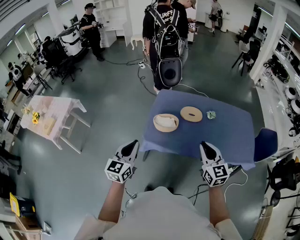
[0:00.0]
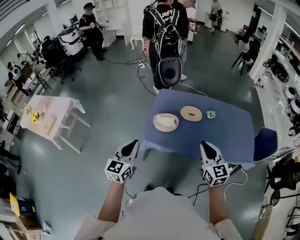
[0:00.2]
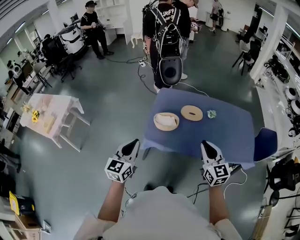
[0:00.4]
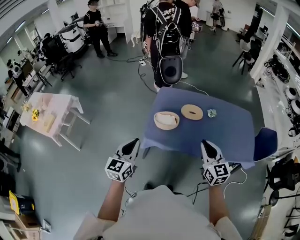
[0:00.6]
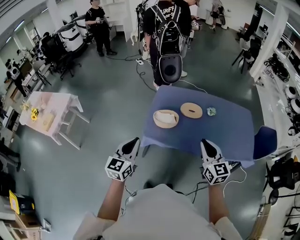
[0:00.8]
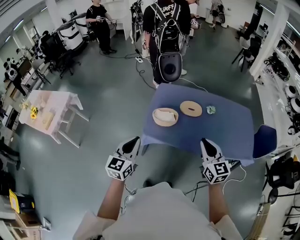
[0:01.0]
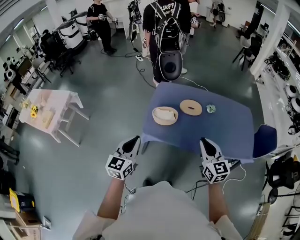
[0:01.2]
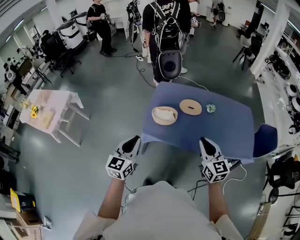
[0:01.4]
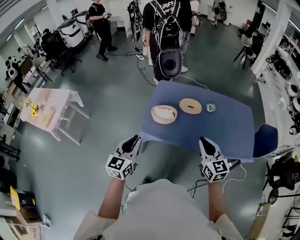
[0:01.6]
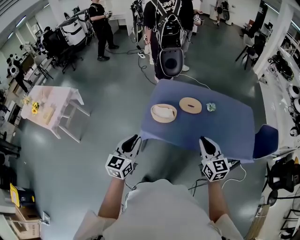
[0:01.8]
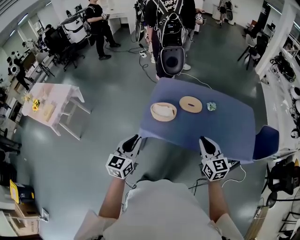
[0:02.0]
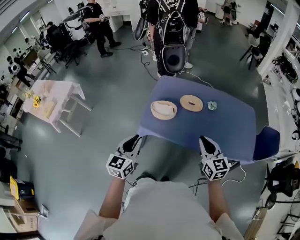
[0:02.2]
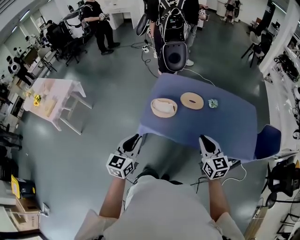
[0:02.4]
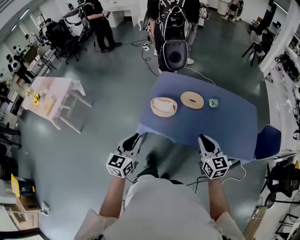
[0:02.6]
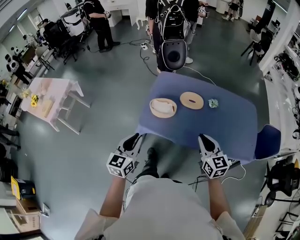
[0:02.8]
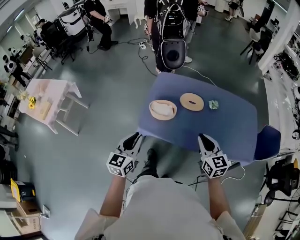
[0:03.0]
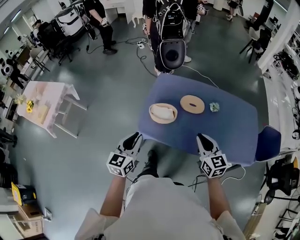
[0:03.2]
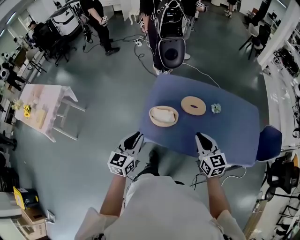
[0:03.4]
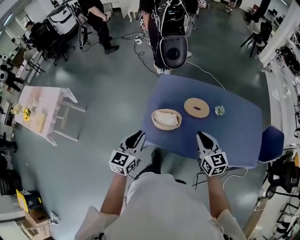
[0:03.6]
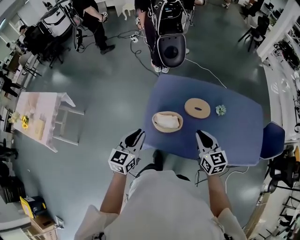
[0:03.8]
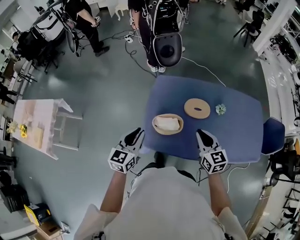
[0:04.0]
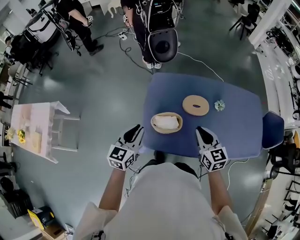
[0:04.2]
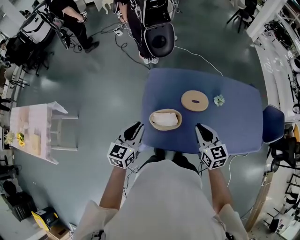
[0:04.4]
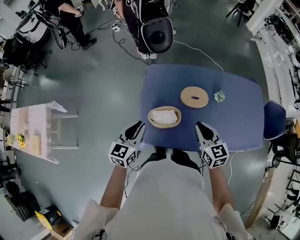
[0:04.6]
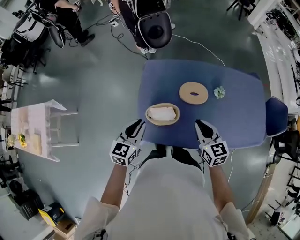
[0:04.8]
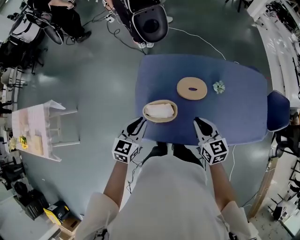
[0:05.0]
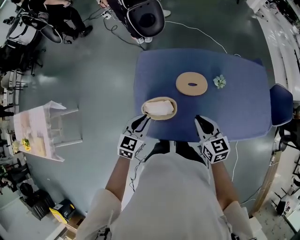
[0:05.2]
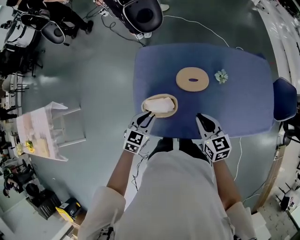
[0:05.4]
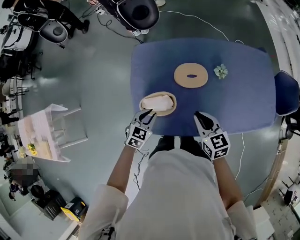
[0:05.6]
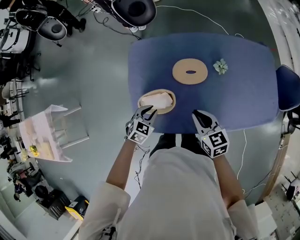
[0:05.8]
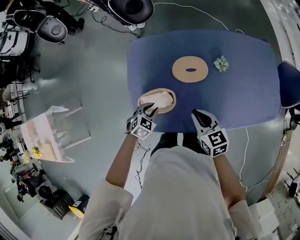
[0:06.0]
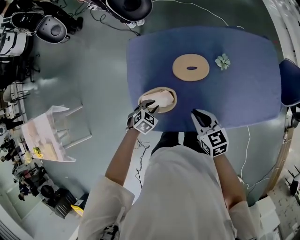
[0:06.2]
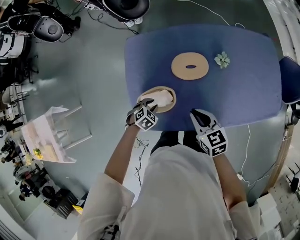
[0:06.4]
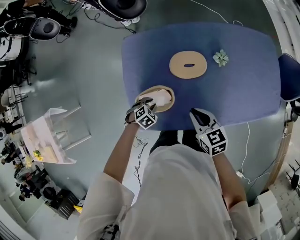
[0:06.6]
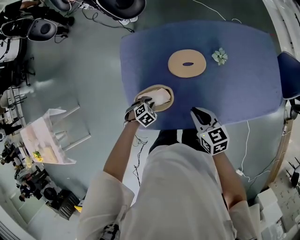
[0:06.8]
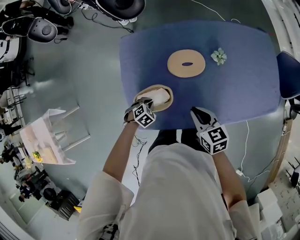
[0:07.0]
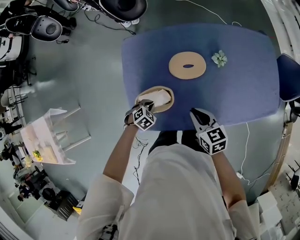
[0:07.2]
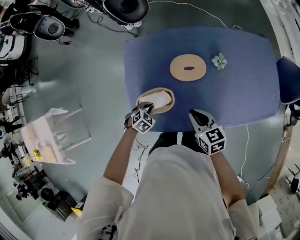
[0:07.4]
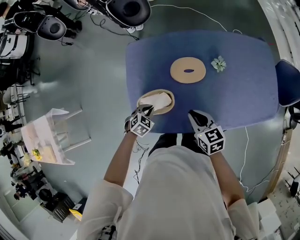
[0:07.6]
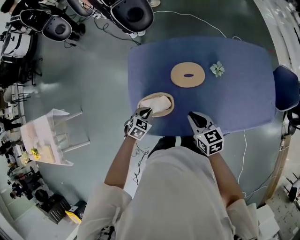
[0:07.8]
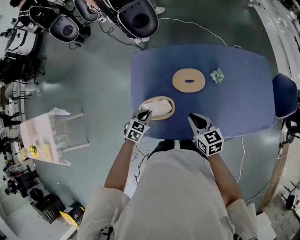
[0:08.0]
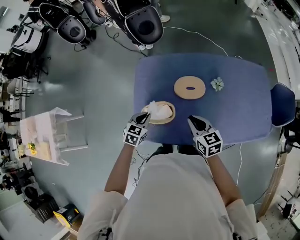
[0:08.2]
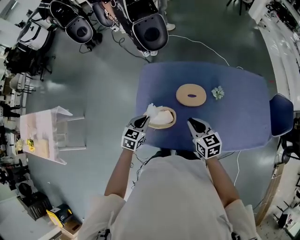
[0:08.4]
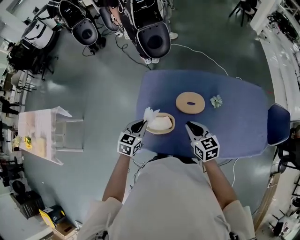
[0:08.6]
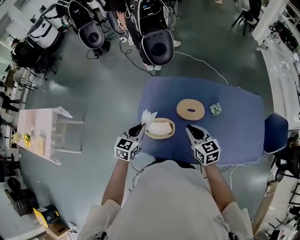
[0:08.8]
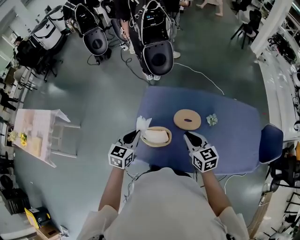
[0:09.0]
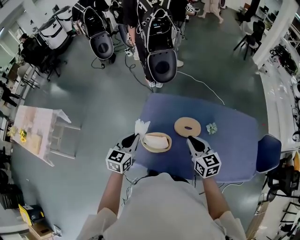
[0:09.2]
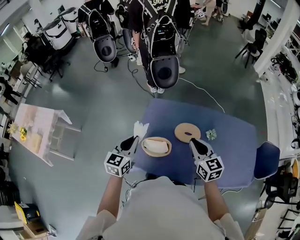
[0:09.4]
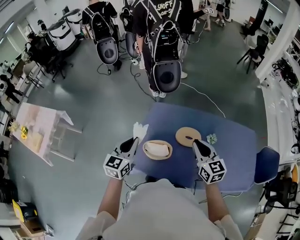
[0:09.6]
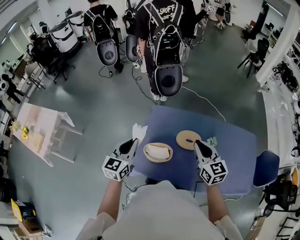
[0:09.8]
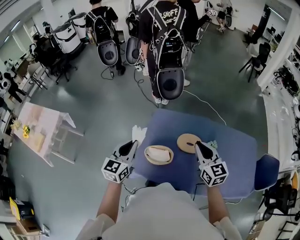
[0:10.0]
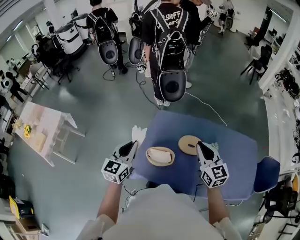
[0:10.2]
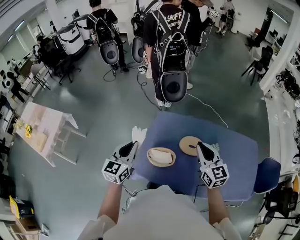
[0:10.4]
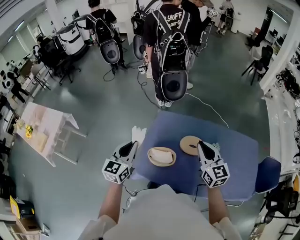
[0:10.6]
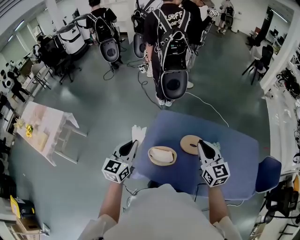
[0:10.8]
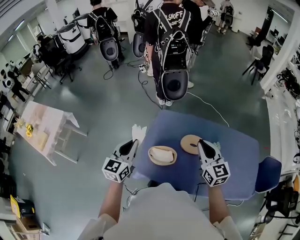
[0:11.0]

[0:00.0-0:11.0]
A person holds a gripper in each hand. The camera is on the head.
0:00.0 to 0:01.6: The grippers make only small movements.
0:01.6 to 0:03.2: Both grippers travel together forward and downward, roughly 10 cm.
0:03.2 to 0:04.8: Both grippers travel together forward, some 20 cm. The left gripper swivels roughly 20 degrees.
0:04.8 to 0:06.2: The left gripper is displaced downward by some 25 cm, and tilts its fingers roughly 40 degrees downward, while the right gripper moves downward, approximately 10 cm.
0:06.2 to 0:07.8: The left gripper closes its fingers.
0:07.8 to 0:09.4: The left gripper shifts roughly 30 cm upward, and points its fingers roughly 40 degrees further upward; the right gripper heads upward, covering about 20 cm, and rotates some 20 degrees.
0:09.4 to 0:11.0: Both grippers move upward, approximately 5 cm.

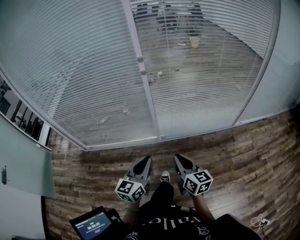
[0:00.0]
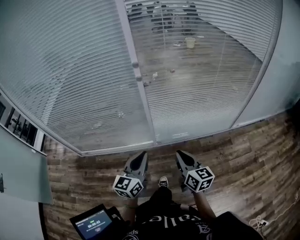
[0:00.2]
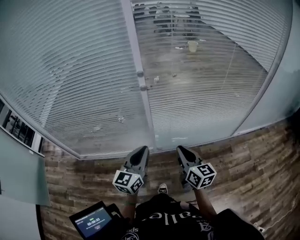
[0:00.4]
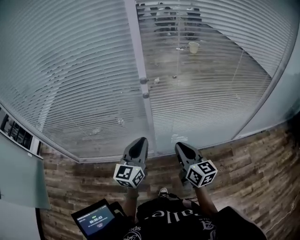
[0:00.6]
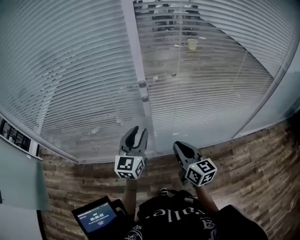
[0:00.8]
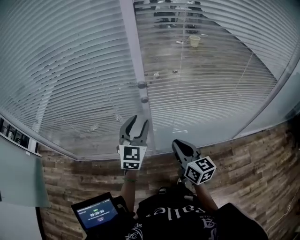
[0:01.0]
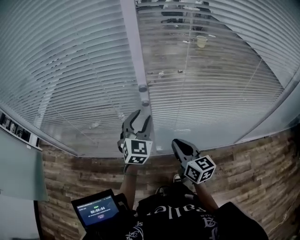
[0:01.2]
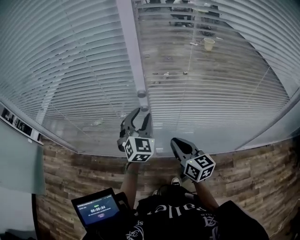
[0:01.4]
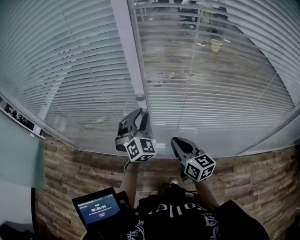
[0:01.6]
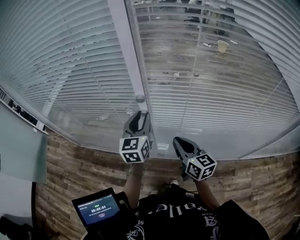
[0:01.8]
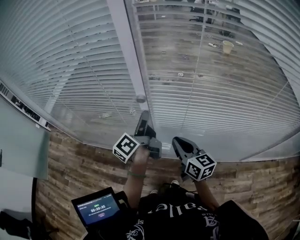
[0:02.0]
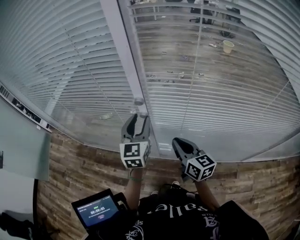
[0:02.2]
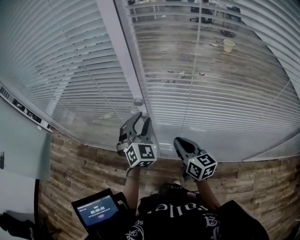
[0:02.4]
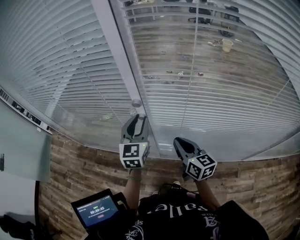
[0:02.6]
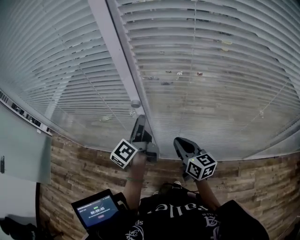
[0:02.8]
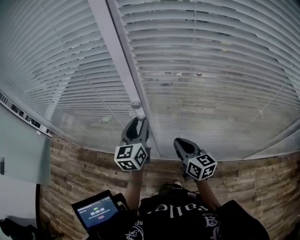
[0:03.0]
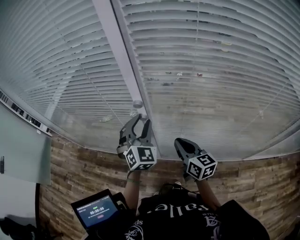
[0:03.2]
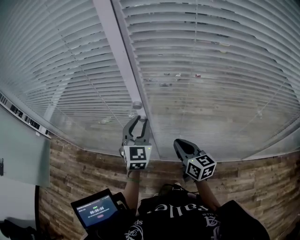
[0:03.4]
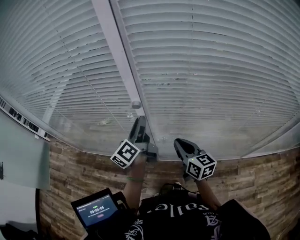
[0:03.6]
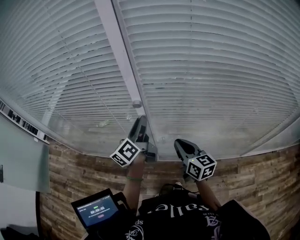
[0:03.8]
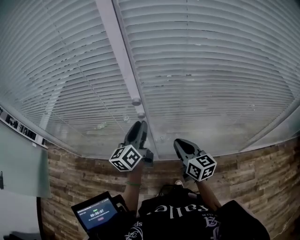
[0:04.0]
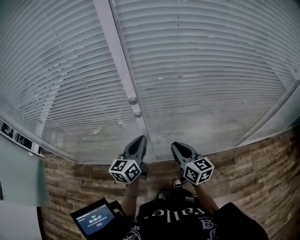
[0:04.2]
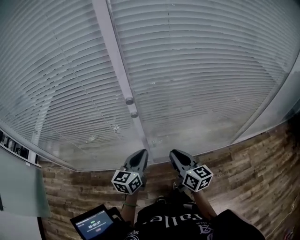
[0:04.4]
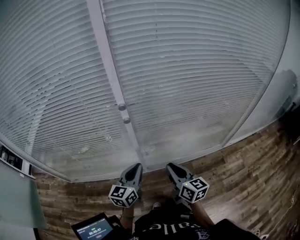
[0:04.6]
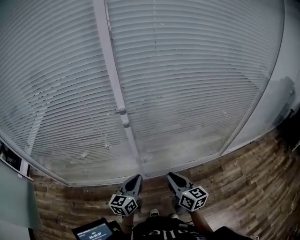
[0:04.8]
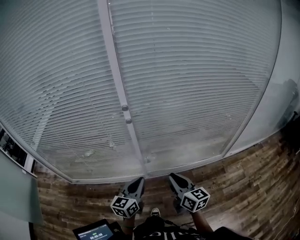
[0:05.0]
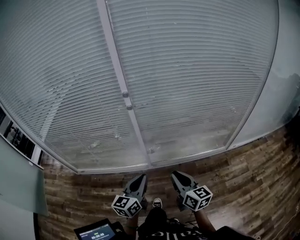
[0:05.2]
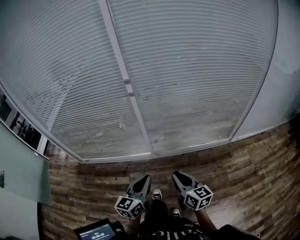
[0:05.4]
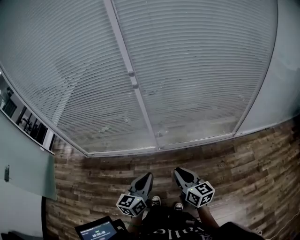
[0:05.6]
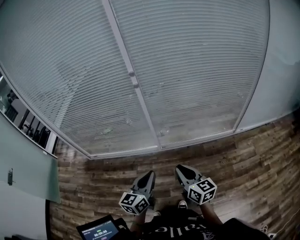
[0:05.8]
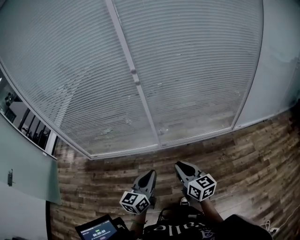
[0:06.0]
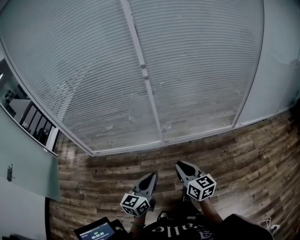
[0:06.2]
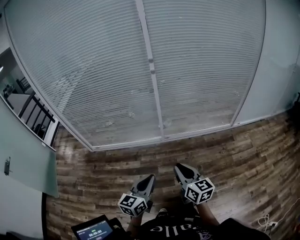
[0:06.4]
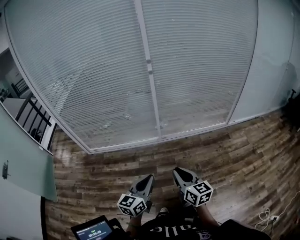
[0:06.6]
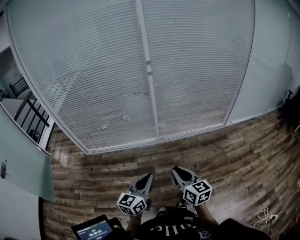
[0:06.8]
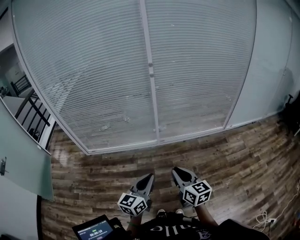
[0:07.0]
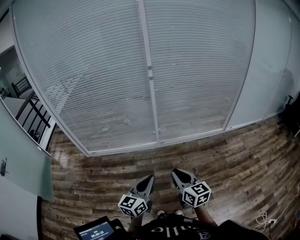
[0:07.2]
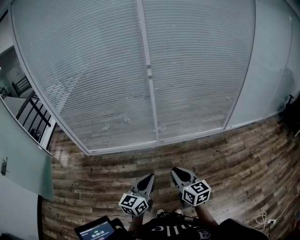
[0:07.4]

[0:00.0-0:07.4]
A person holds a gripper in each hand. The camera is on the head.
0:00.0 to 0:01.4: Both grippers move forward, approximately 40 cm. The left gripper rotates around the line of its fingers by some 50 degrees, clockwise from behind, and opens up.
0:01.4 to 0:03.0: The right gripper moves forward and to the right, some 10 cm; the left gripper rotates around the line of its fingers by some 50 degrees, counterclockwise from behind.
0:03.0 to 0:04.4: The right gripper moves backward, some 10 cm, while the left gripper travels backward and downward by about 15 cm, swivels approximately 30 degrees, and closes.
0:04.4 to 0:06.0: The pair of grippers is taken backward, some 40 cm.
0:06.0 to 0:07.4: The two grippers go roughly 25 cm backward and to the left.

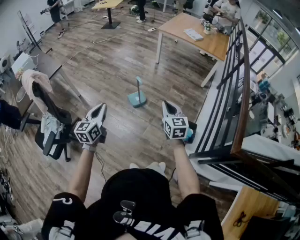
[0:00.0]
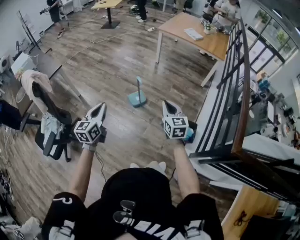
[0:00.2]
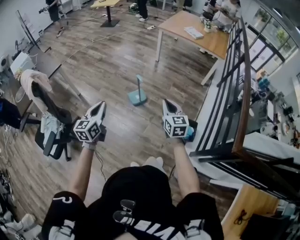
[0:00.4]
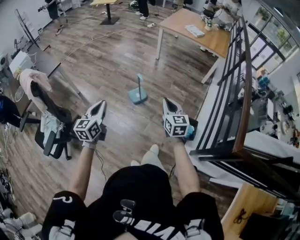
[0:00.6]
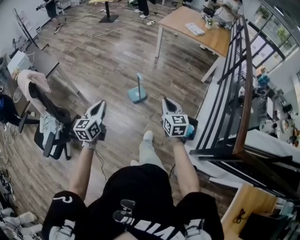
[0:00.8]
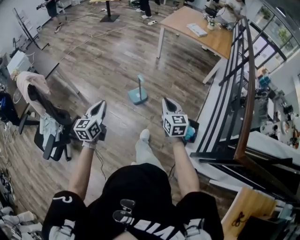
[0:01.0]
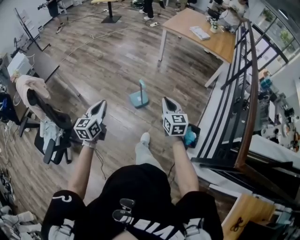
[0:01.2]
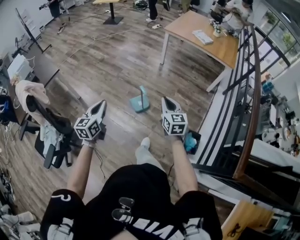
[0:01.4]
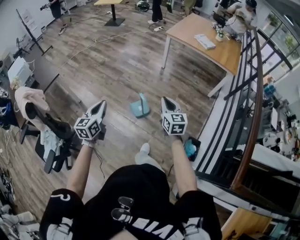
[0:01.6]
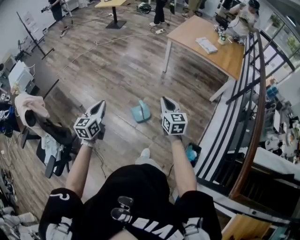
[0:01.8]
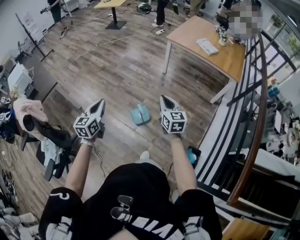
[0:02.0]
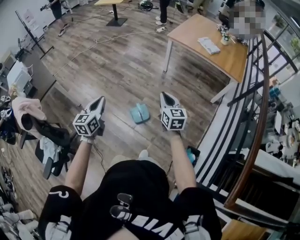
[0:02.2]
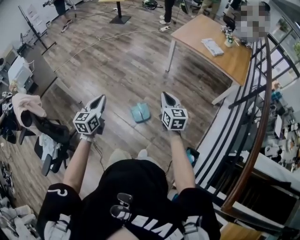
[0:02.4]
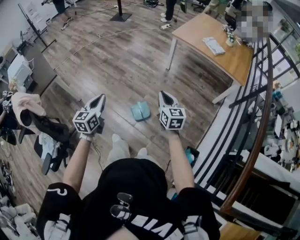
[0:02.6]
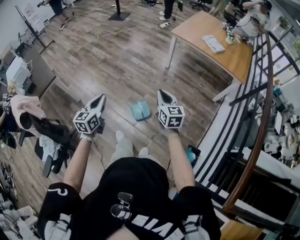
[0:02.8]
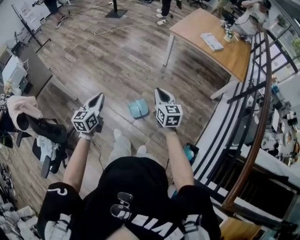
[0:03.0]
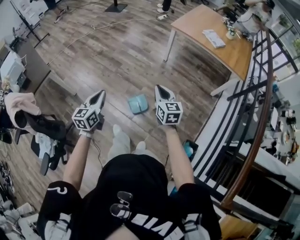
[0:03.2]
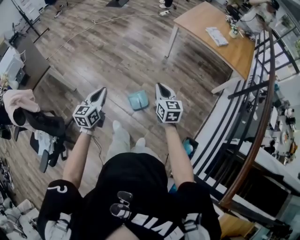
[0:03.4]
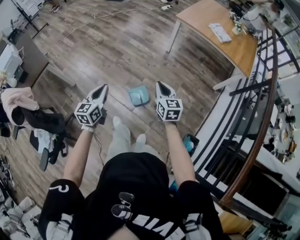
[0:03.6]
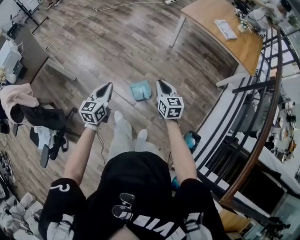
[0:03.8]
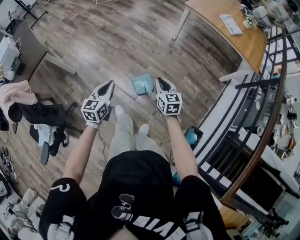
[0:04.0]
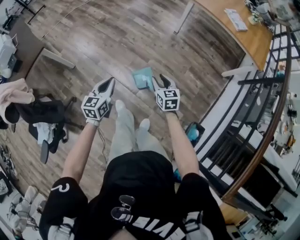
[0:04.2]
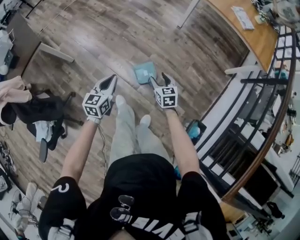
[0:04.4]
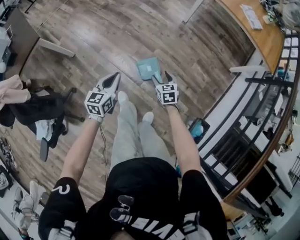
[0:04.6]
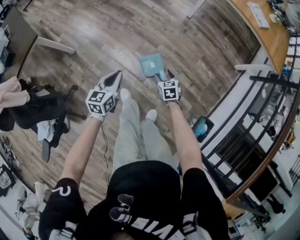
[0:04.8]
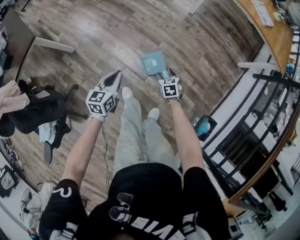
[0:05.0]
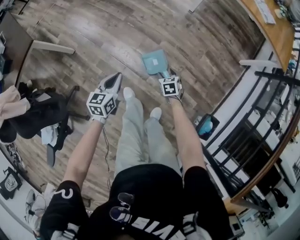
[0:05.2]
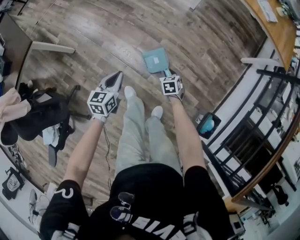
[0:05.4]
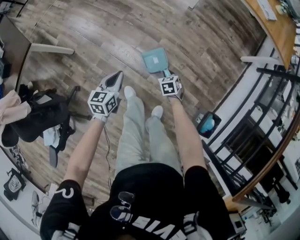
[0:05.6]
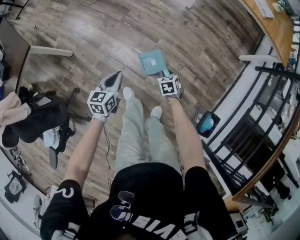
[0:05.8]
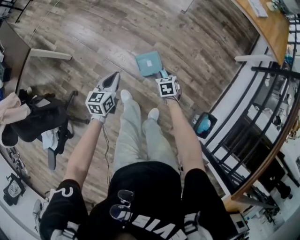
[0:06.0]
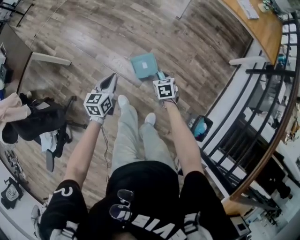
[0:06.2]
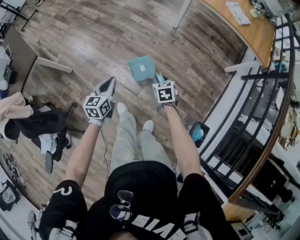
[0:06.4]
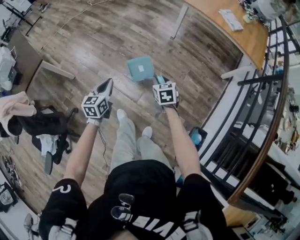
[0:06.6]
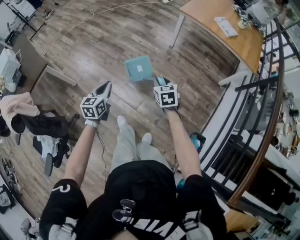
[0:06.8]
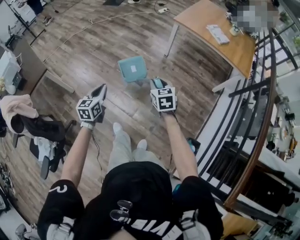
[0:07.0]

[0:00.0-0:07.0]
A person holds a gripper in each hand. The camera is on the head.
0:00.0 to 0:01.4: The two grippers go roughly 20 cm forward.
0:01.4 to 0:02.8: Both grippers travel together forward, some 25 cm.
0:02.8 to 0:04.2: The grippers both shift downward by approximately 20 cm. The right gripper opens.
0:04.2 to 0:05.6: The right gripper heads downward, covering some 30 cm, angles its fingers downward, by roughly 30 degrees, and opens, then closes again; the left gripper is displaced downward and forward by roughly 20 cm.
0:05.6 to 0:07.0: The right gripper travels upward by roughly 40 cm, and rotates approximately 30 degrees. The left gripper moves upward, some 25 cm.
